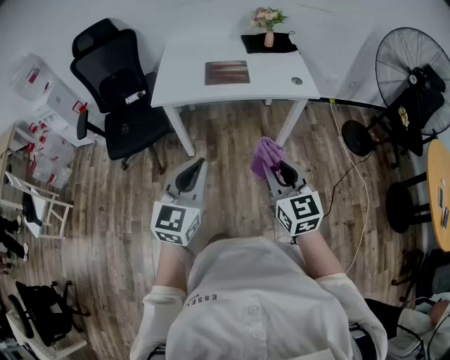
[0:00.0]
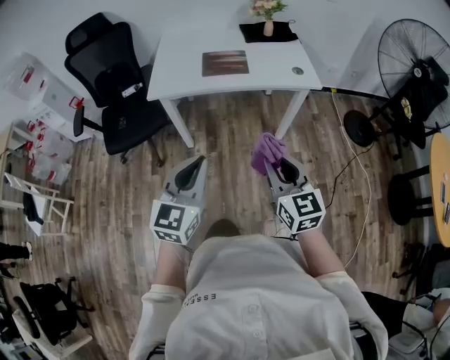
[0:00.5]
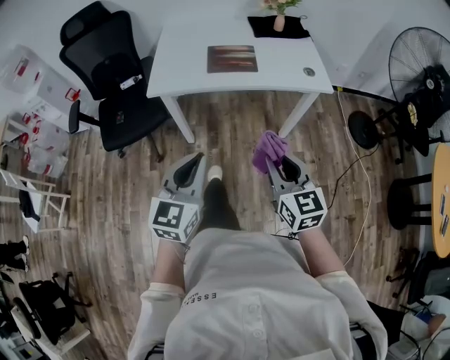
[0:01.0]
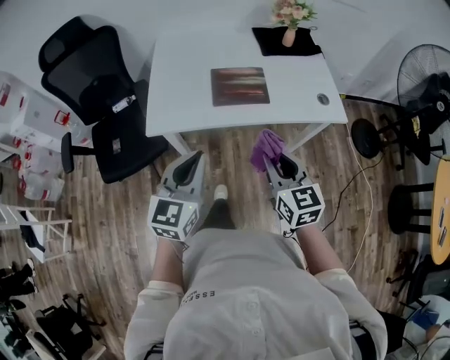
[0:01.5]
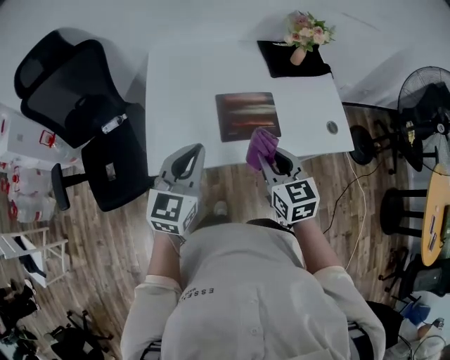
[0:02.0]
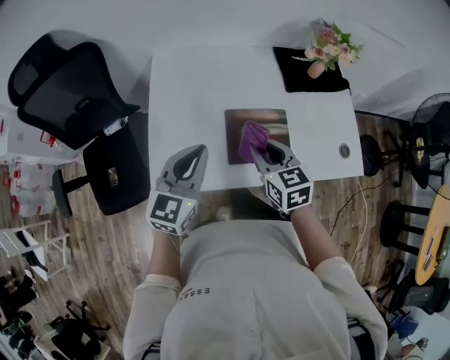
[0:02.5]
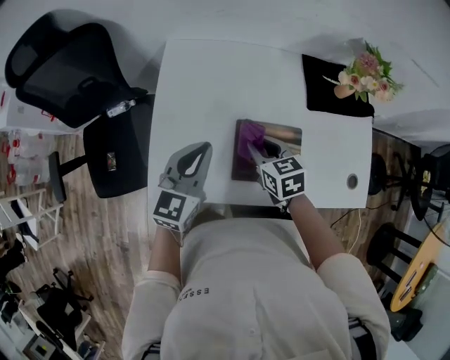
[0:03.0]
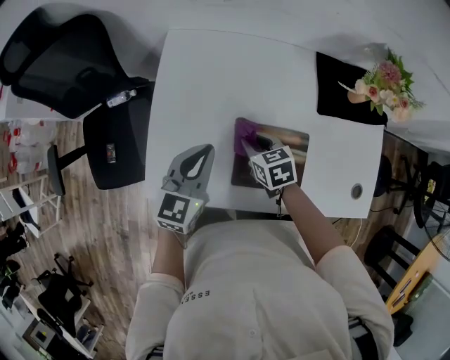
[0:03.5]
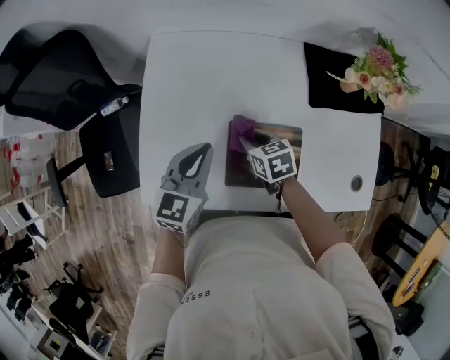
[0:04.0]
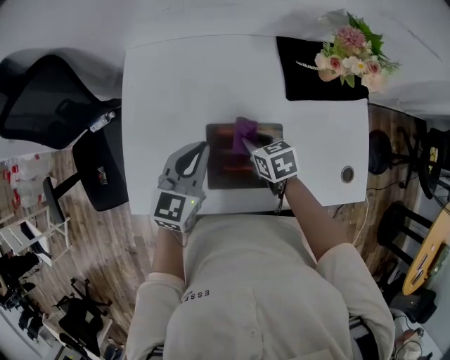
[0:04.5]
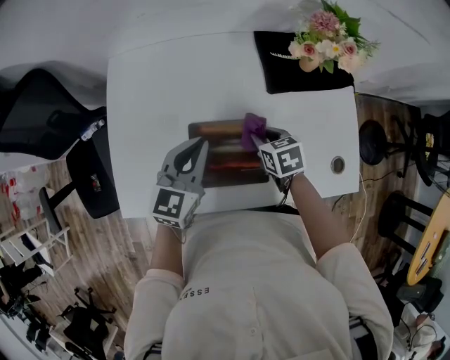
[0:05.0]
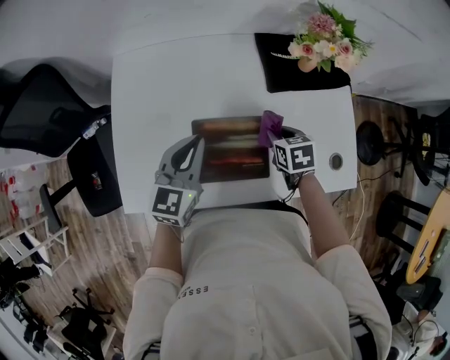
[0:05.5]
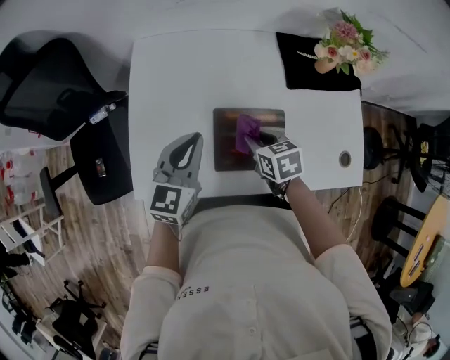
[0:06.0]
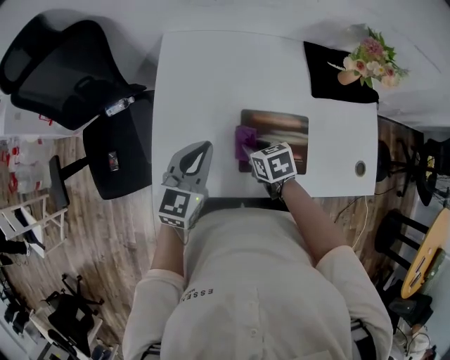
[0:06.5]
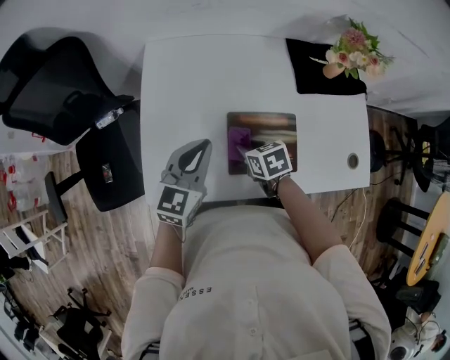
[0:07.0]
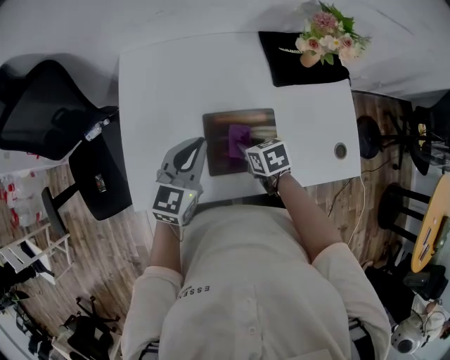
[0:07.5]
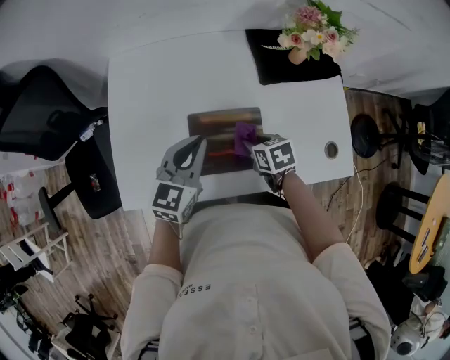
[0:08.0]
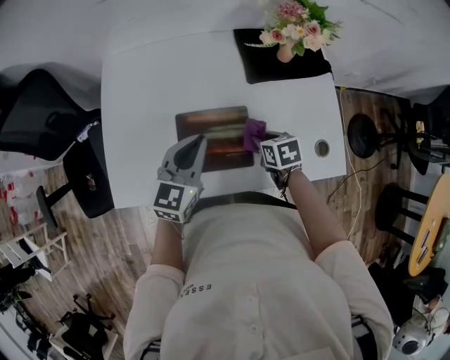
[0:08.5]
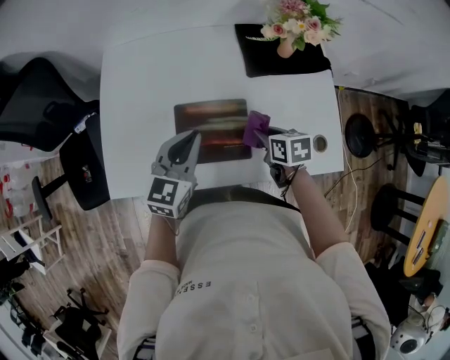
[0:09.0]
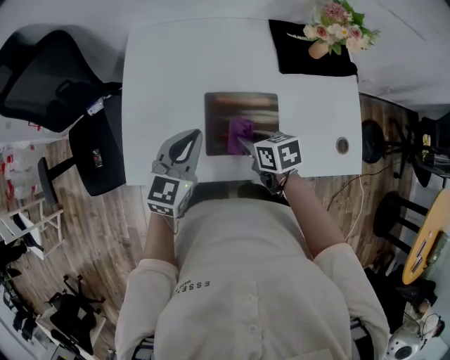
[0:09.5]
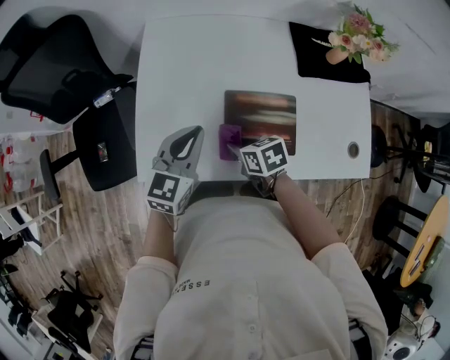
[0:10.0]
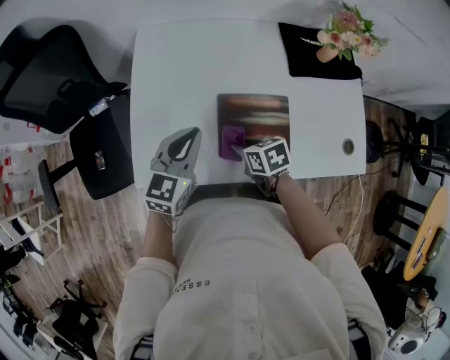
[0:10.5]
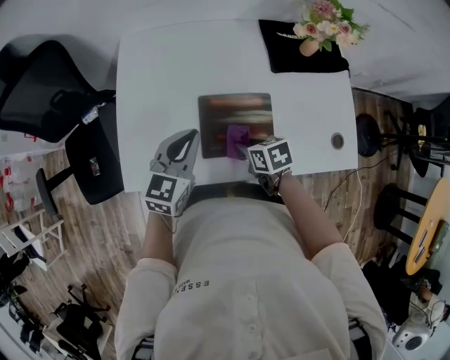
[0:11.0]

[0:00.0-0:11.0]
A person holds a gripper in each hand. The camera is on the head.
0:00.0 to 0:02.0: Both grippers are carried forward, some 50 cm.
0:02.0 to 0:03.5: The two grippers go some 25 cm forward and downward. The right gripper swivels about 30 degrees.
0:03.5 to 0:05.5: The left gripper travels to the right by about 10 cm; the right gripper moves to the right, roughly 20 cm, and turns by about 20 degrees.
0:05.5 to 0:07.5: The right gripper is displaced to the left by roughly 15 cm. The left gripper moves some 15 cm to the left and comes back.
0:07.5 to 0:09.0: The left gripper travels to the right by some 10 cm. Meanwhile the right gripper goes about 15 cm to the right.
0:09.0 to 0:11.0: The left gripper goes some 10 cm to the left; the right gripper is displaced to the left by approximately 15 cm.

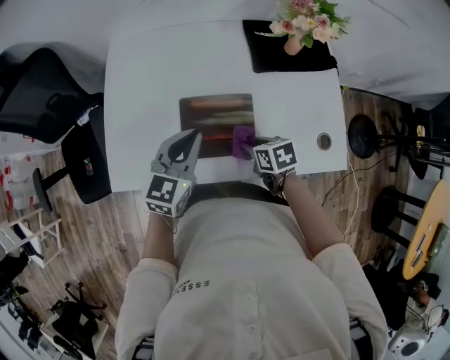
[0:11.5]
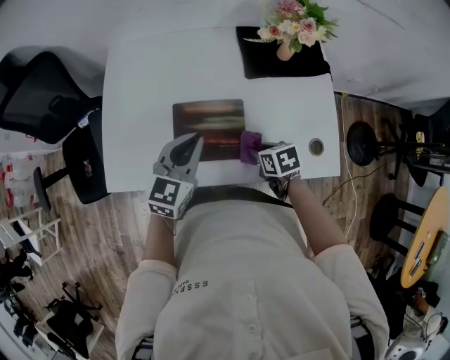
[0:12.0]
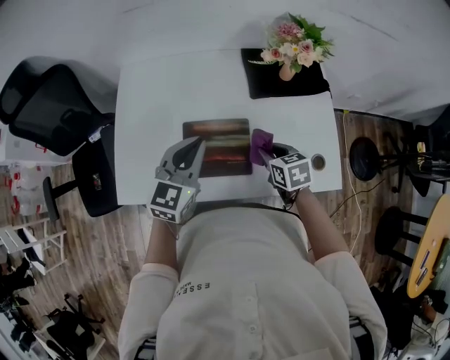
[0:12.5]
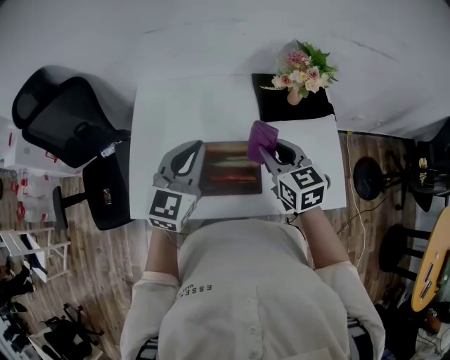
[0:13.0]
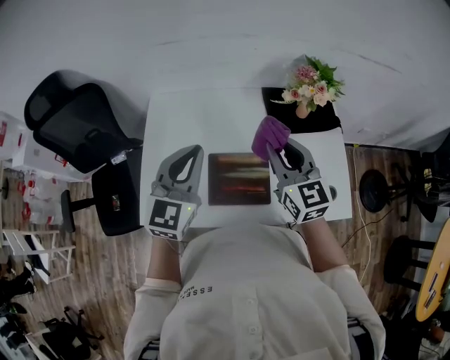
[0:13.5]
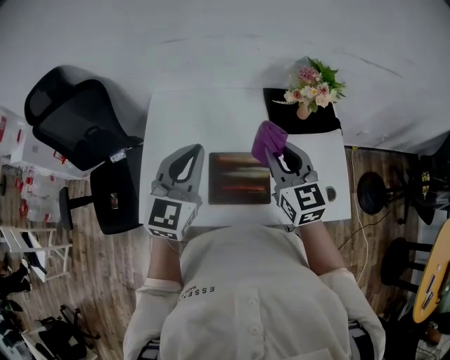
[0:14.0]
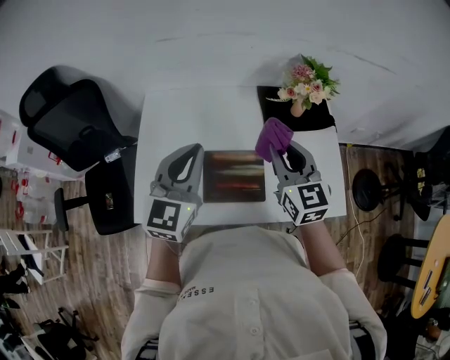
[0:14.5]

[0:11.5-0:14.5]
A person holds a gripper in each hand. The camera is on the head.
0:11.5 to 0:13.0: The left gripper moves upward, roughly 10 cm, while the right gripper goes approximately 20 cm upward, and tips its fingers upward by some 30 degrees.
0:13.0 to 0:14.5: The left gripper moves roughly 5 cm, while the right gripper shifts some 5 cm upward.

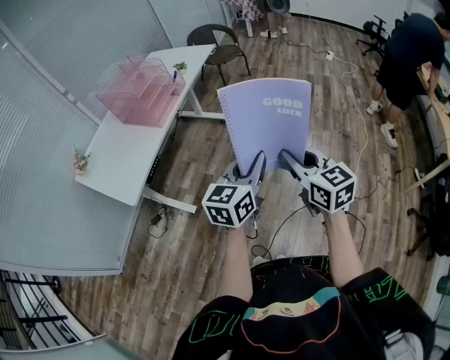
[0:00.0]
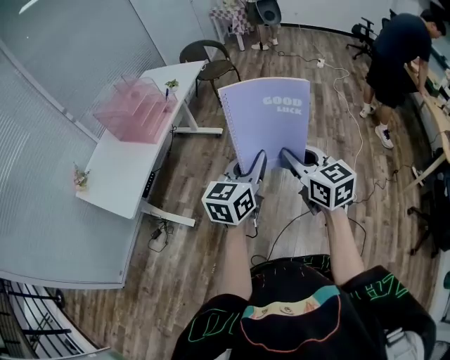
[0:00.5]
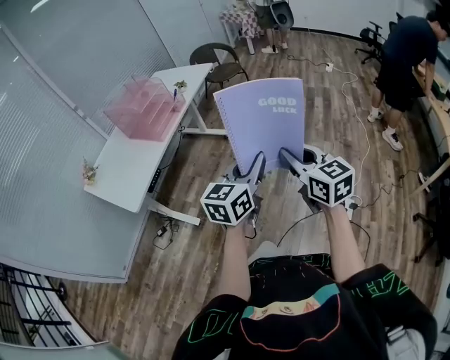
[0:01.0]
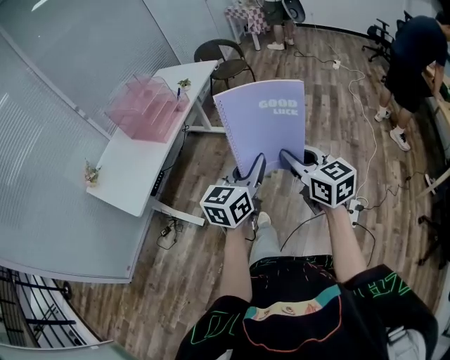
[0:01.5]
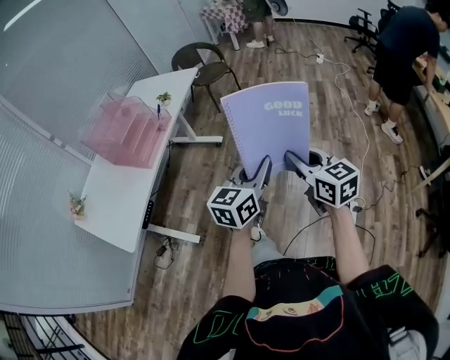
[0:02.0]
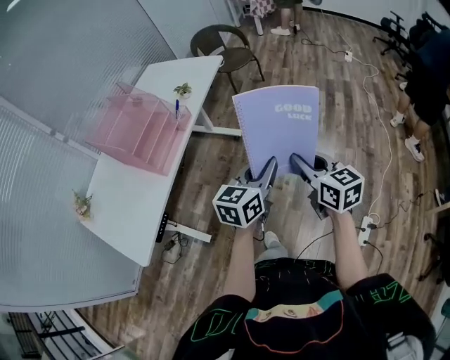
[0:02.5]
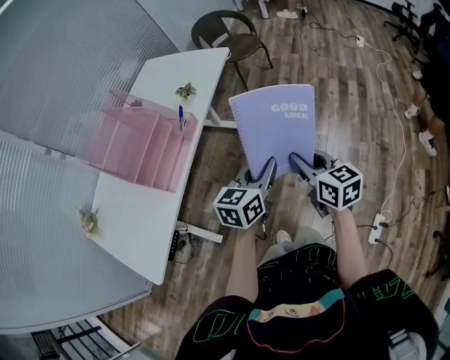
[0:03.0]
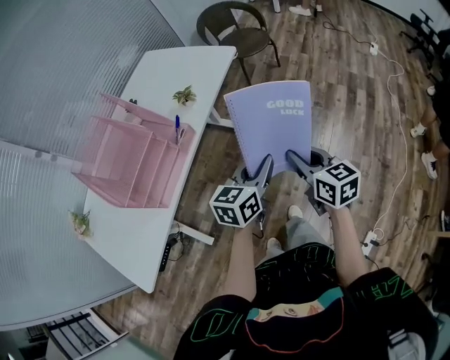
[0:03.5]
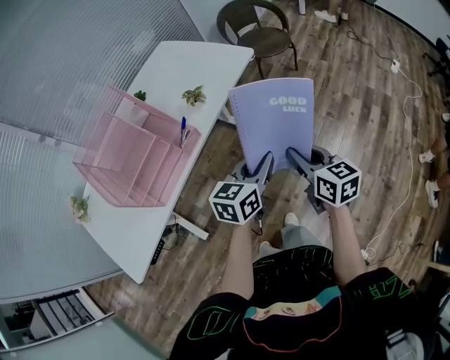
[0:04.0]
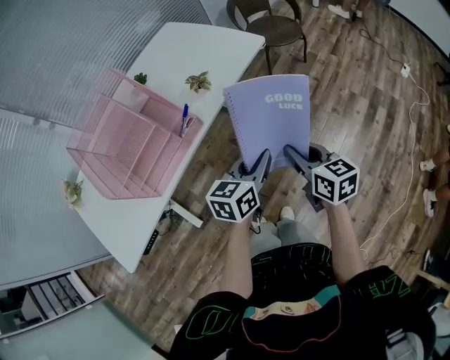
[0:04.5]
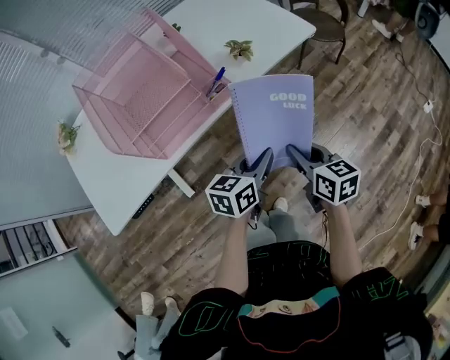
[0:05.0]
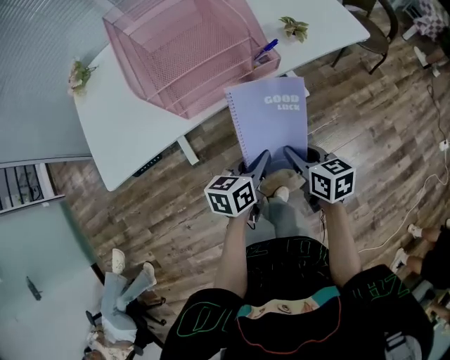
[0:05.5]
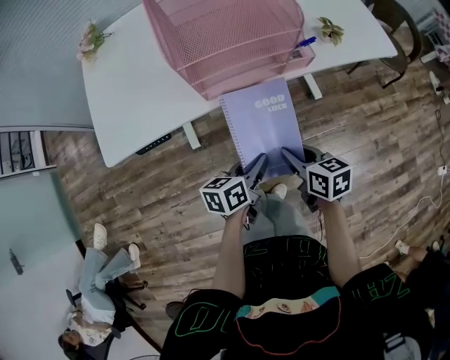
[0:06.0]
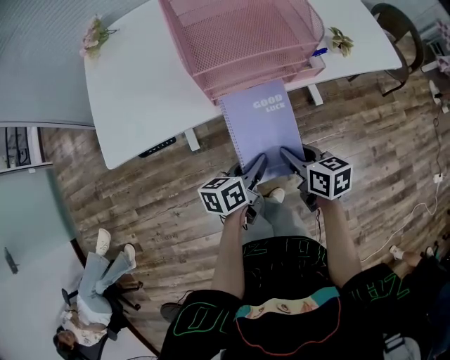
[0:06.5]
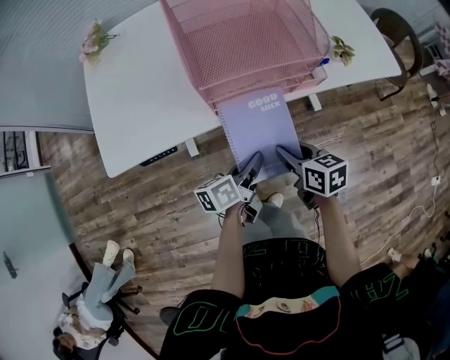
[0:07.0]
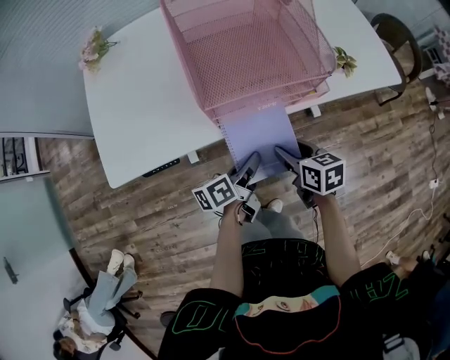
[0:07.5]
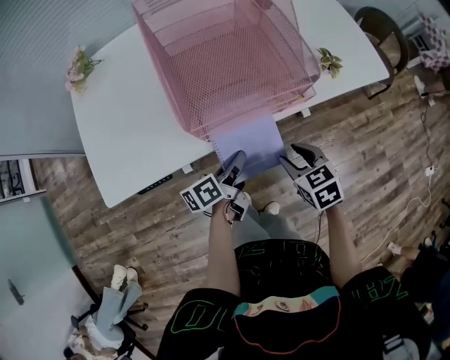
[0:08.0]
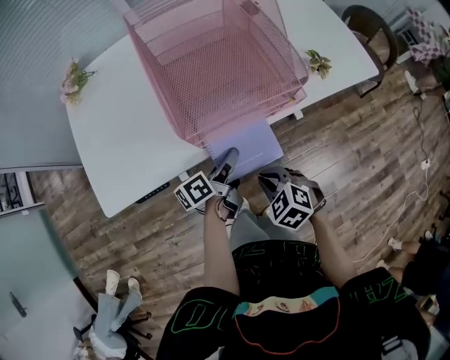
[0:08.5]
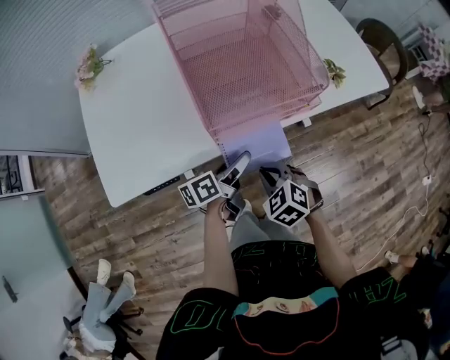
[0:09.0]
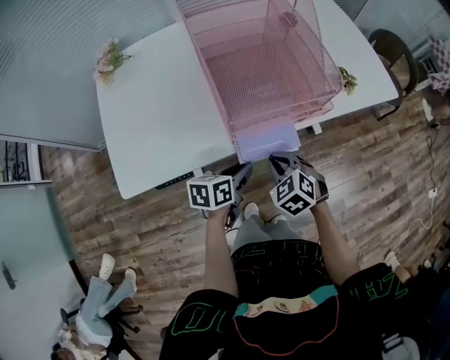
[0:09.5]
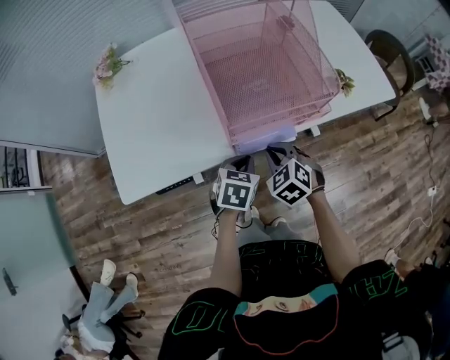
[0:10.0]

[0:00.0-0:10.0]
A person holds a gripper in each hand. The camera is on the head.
0:00.0 to 0:02.0: Both grippers travel together forward and to the right, approximately 15 cm.
0:02.0 to 0:04.0: The two grippers travel together, forward, some 40 cm. The left gripper rotates some 20 degrees; the right gripper changes its angle by roughly 20 degrees.
0:04.0 to 0:06.0: The right gripper shifts by approximately 30 cm, and swivels about 50 degrees. The left gripper changes place by about 30 cm, and rotates some 50 degrees.
0:06.0 to 0:08.0: Both grippers travel together forward, roughly 10 cm. The right gripper changes its angle by some 30 degrees, and opens. The left gripper turns by roughly 20 degrees.
0:08.0 to 0:10.0: The left gripper twists about 50 degrees clockwise, seen from behind, and opens, then closes again; the right gripper heads to the left, covering some 10 cm, changes its angle by about 30 degrees, and closes its fingers.

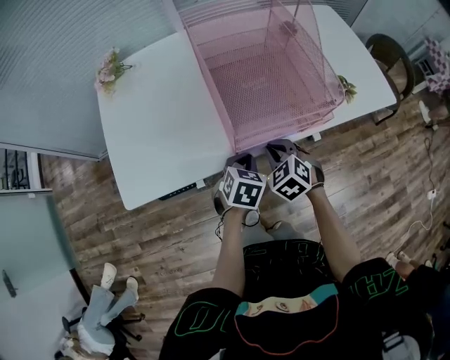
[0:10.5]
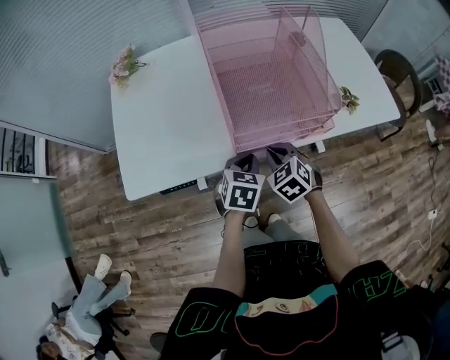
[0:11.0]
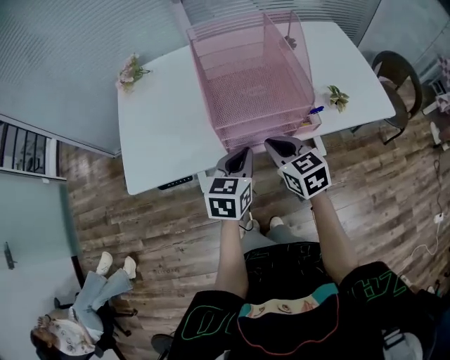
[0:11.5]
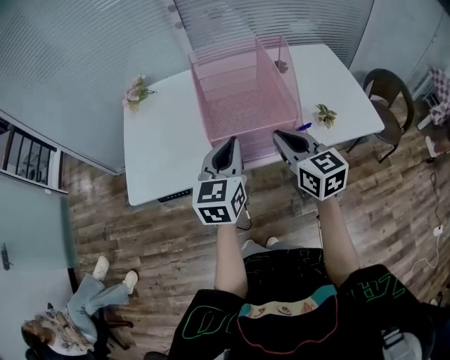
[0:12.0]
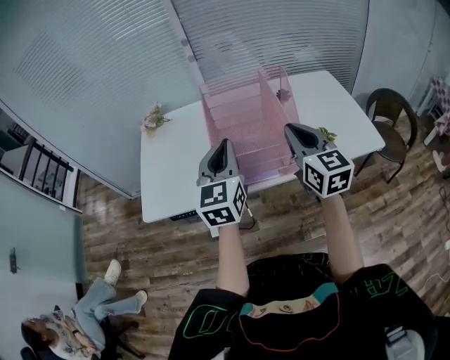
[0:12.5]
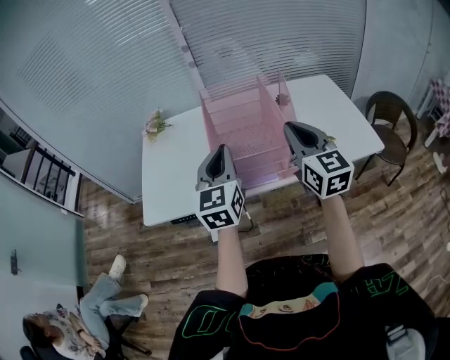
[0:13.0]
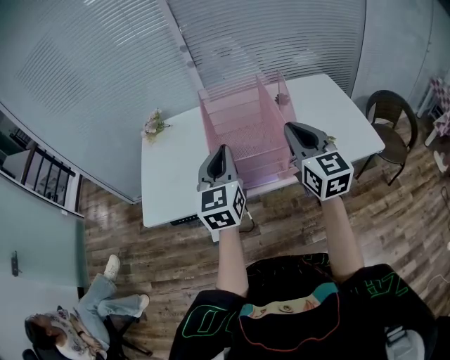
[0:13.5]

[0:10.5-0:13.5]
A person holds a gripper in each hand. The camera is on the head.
0:10.5 to 0:12.0: The two grippers go approximately 25 cm upward. The left gripper angles its fingers upward, by approximately 40 degrees; the right gripper points its fingers roughly 40 degrees further upward.
0:12.0 to 0:13.5: The two grippers go some 10 cm upward.
